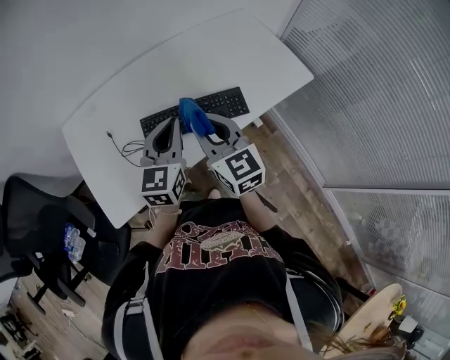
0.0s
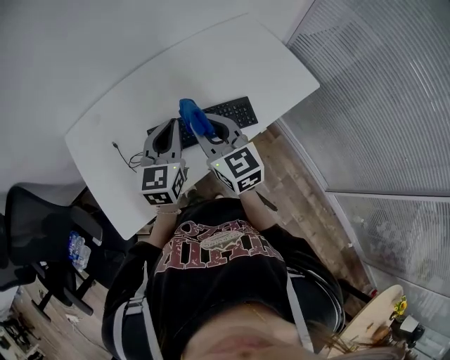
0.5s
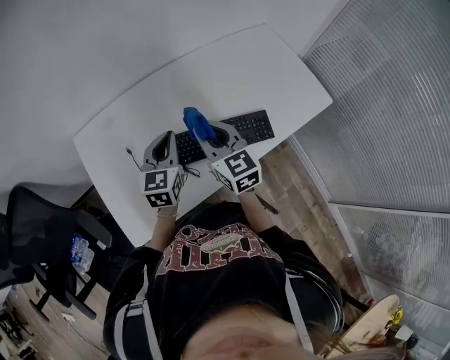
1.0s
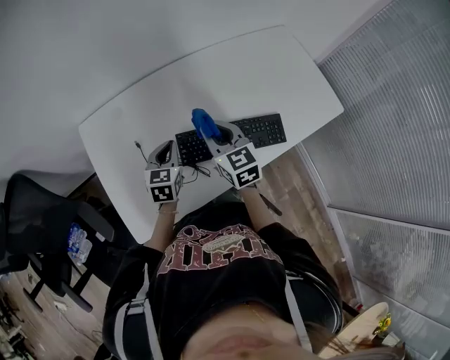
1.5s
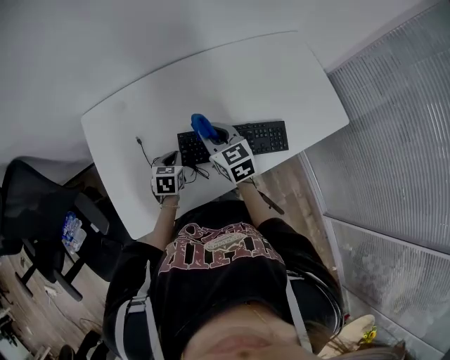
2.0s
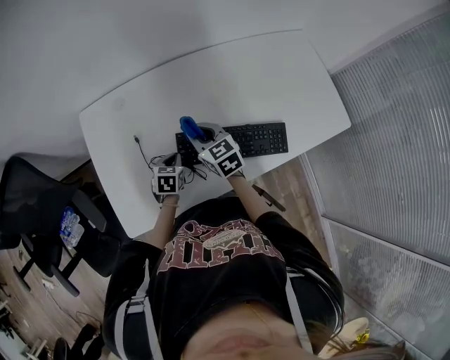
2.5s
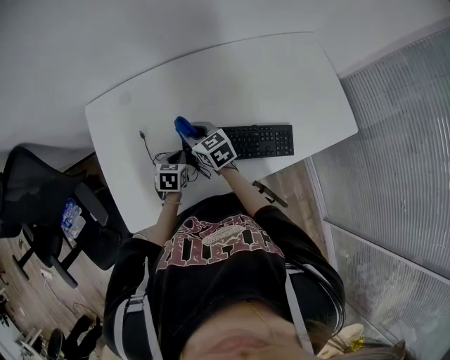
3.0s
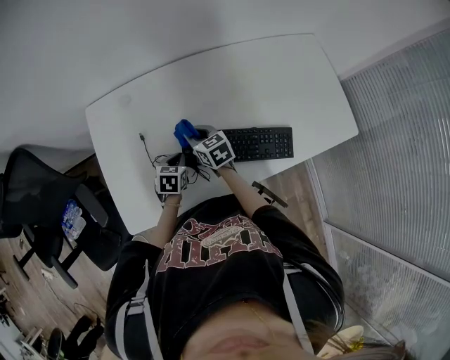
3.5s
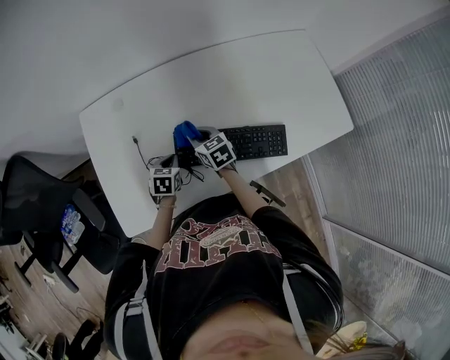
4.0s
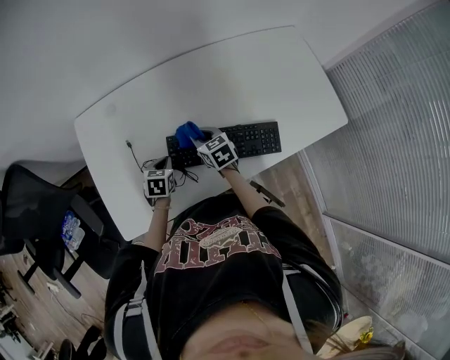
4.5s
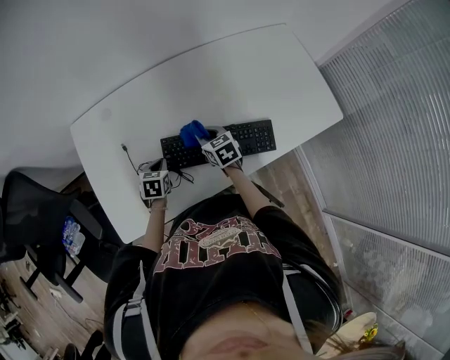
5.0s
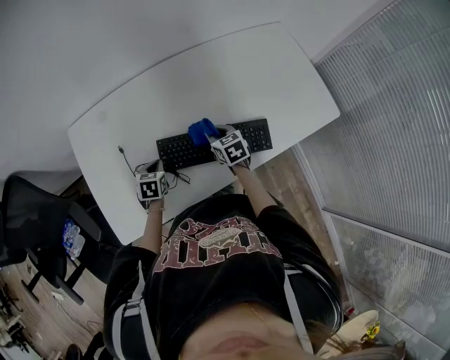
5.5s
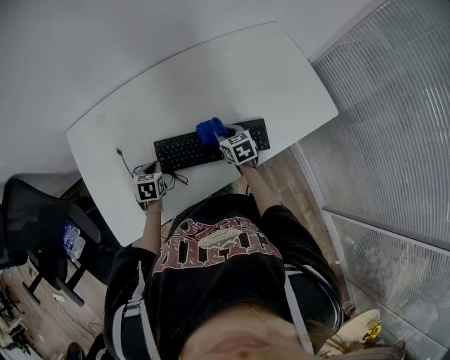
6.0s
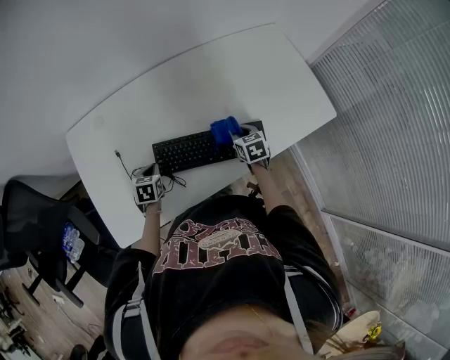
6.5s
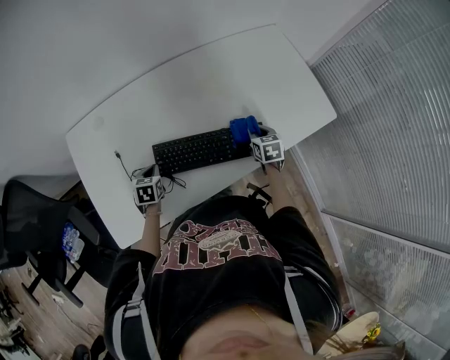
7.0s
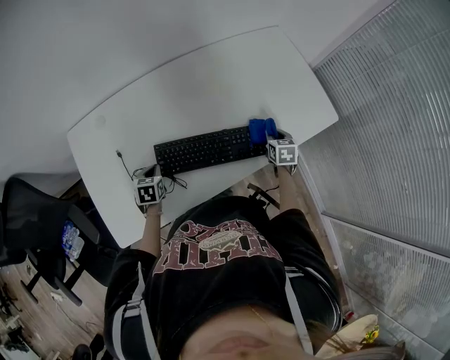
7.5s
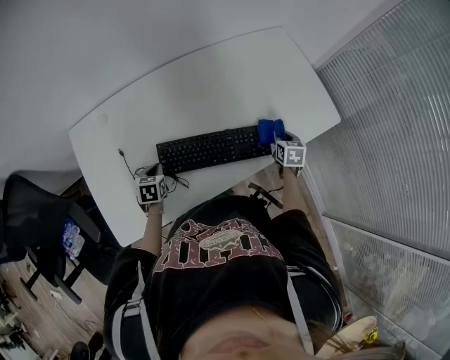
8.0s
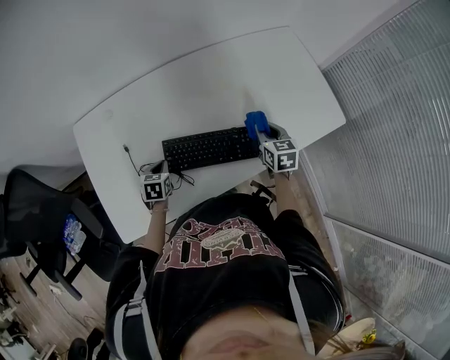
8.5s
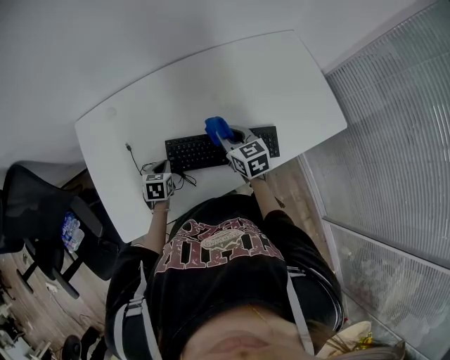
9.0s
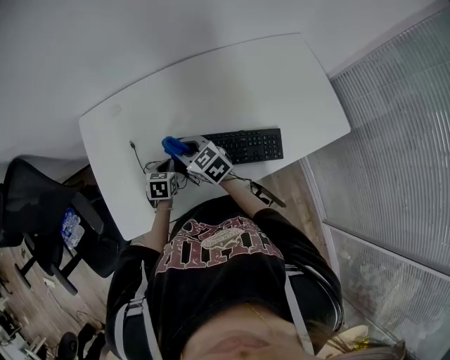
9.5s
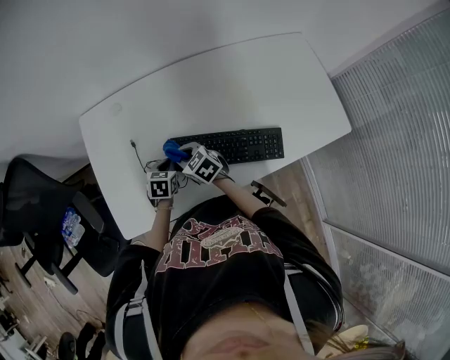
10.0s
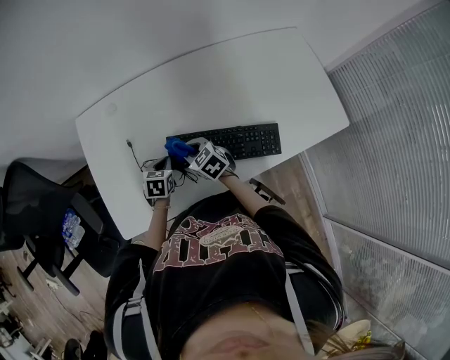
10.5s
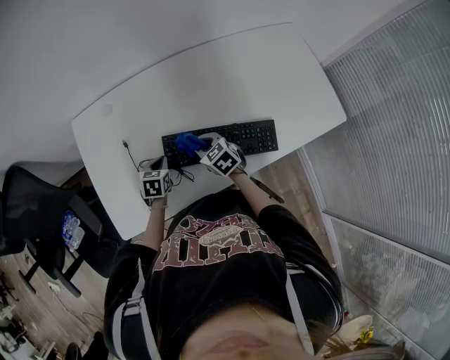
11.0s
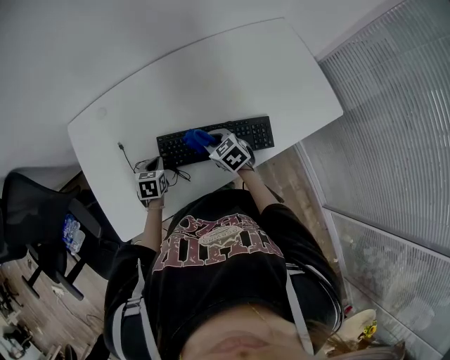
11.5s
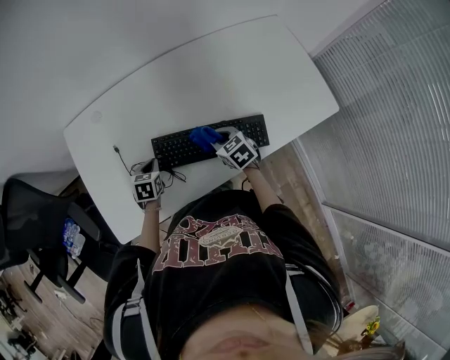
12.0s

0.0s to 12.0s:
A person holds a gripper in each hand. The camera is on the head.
0.0s to 2.0s: The left gripper goes about 30 cm downward and to the left, and angles its fingers downward, by some 40 degrees, while the right gripper is displaced forward, downward and to the left by approximately 25 cm, and turns by roughly 20 degrees.
2.0s to 4.0s: The right gripper heads downward, covering roughly 10 cm.
4.0s to 6.0s: The right gripper travels to the right by roughly 20 cm.
6.0s to 8.0s: The right gripper goes some 20 cm to the right, and swivels some 30 degrees.
8.0s to 10.0s: The right gripper moves about 10 cm upward and comes back, and changes its angle by roughly 60 degrees.
10.0s to 12.0s: The right gripper heads to the right, covering about 20 cm.

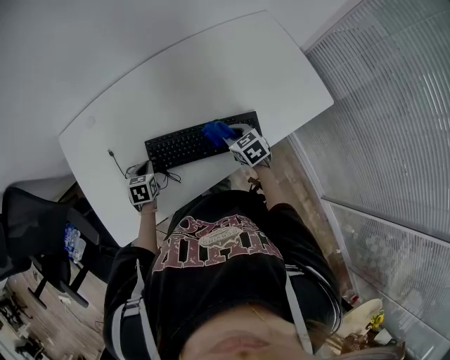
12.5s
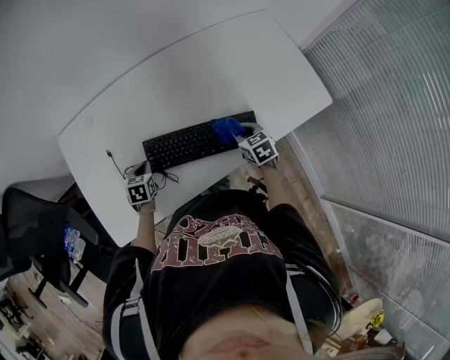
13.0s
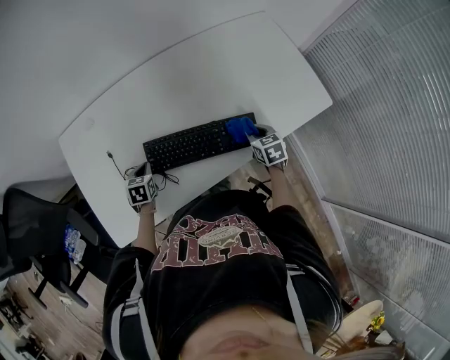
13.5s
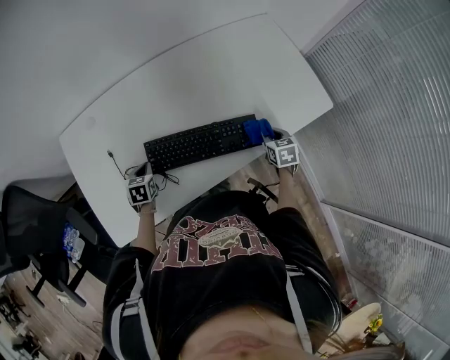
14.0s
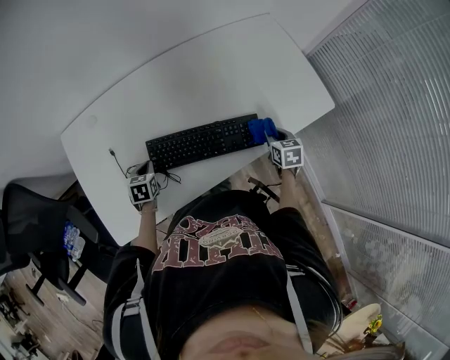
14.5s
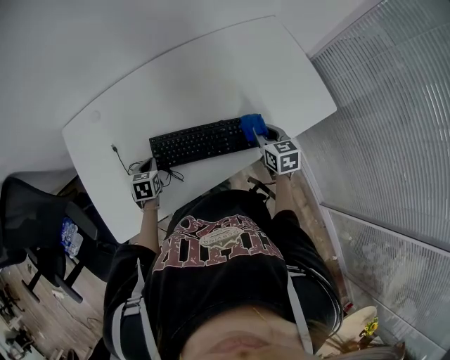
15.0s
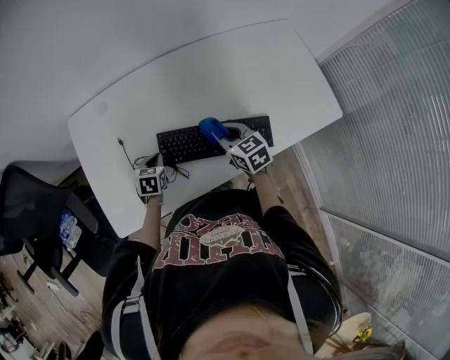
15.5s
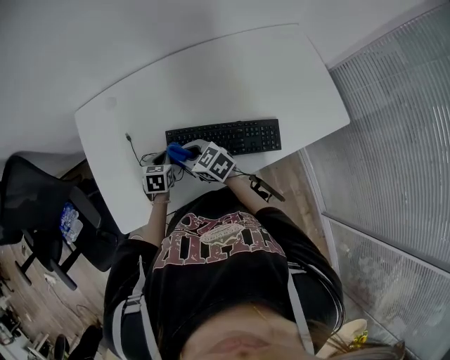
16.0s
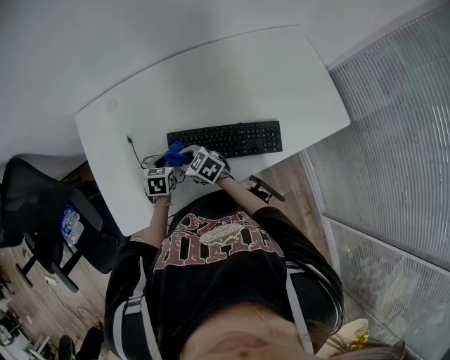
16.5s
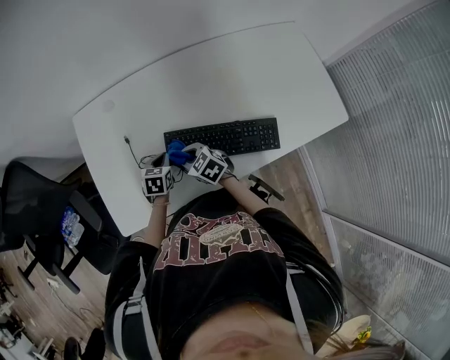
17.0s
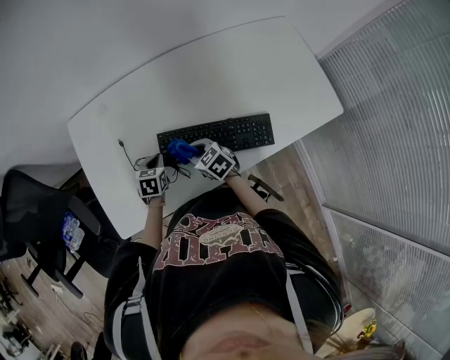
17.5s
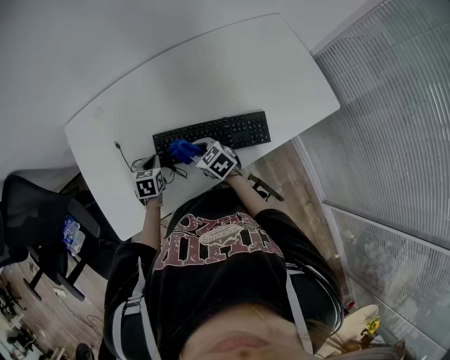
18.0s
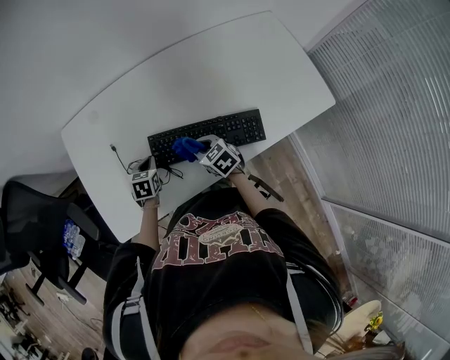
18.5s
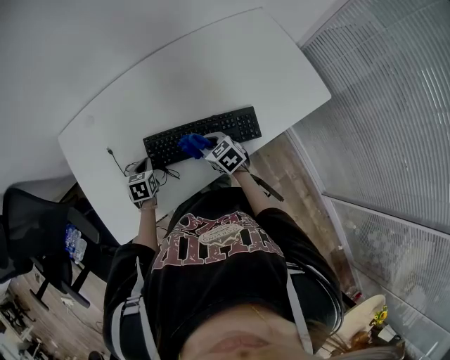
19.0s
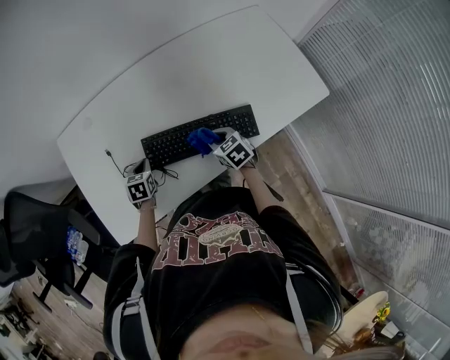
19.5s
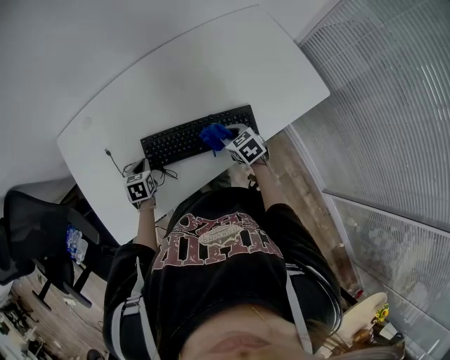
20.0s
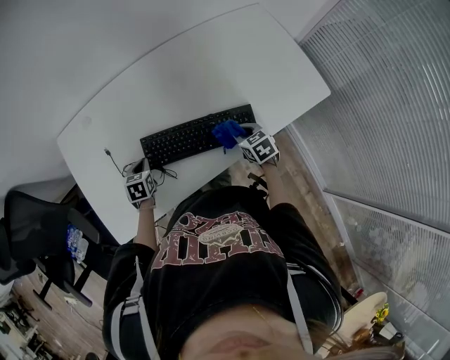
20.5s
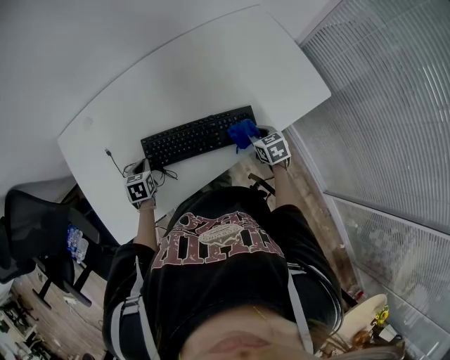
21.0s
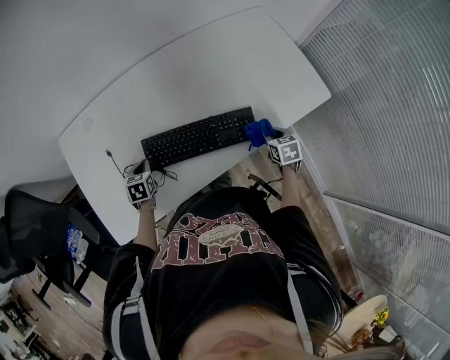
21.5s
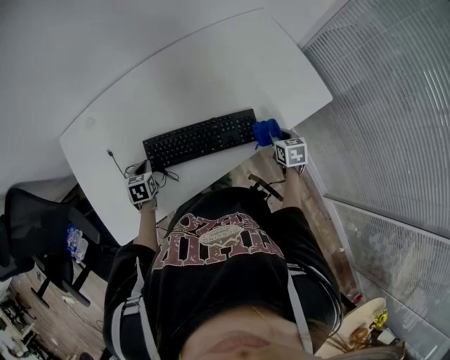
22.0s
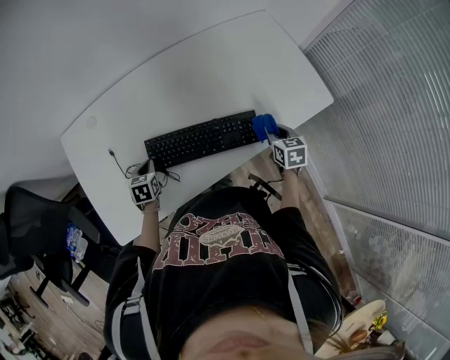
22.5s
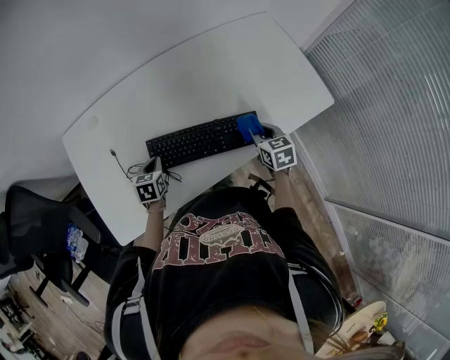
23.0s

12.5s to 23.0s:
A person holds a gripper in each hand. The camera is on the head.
12.5s to 14.5s: The right gripper shifts approximately 15 cm to the right, and rotates roughly 30 degrees.
14.5s to 16.5s: The right gripper moves some 40 cm, and rotates about 60 degrees.
16.5s to 19.0s: The right gripper moves to the right, roughly 20 cm, and changes its angle by about 20 degrees.
19.0s to 21.0s: The right gripper goes roughly 20 cm to the right, and swivels some 20 degrees.
21.0s to 23.0s: The right gripper shifts approximately 5 cm upward, and goes to the right and returns, about 10 cm each way.

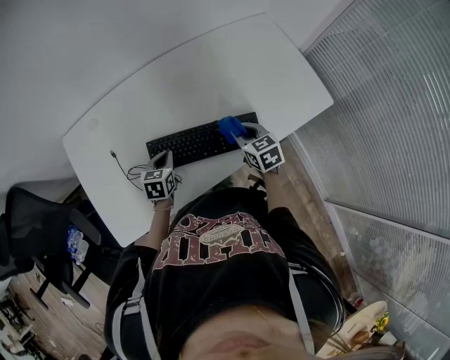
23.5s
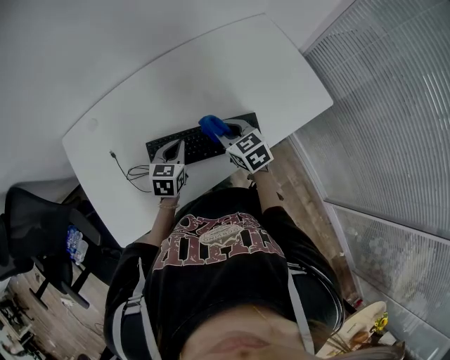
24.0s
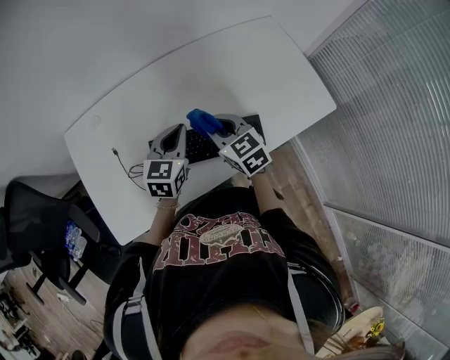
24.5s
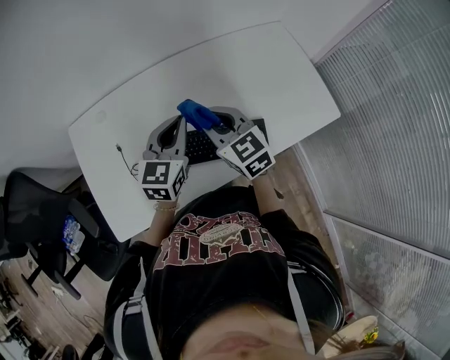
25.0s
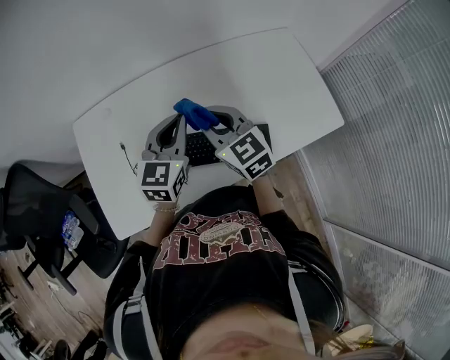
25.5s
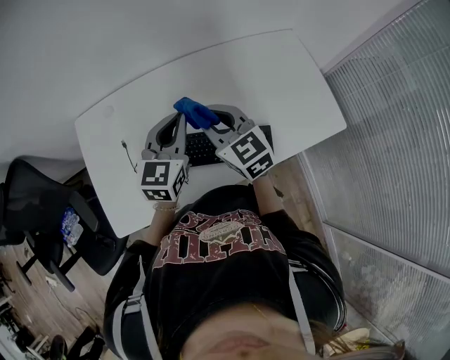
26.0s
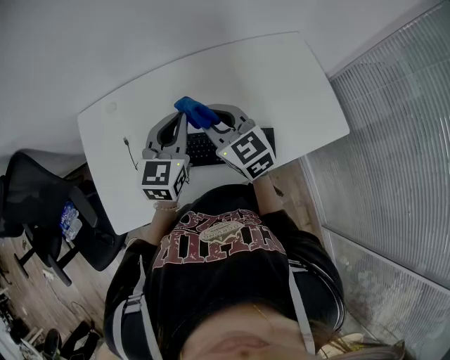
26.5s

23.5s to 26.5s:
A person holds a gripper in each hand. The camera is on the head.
23.5s to 25.0s: The right gripper shifts some 20 cm upward and to the left, and rotates approximately 30 degrees. The left gripper heads upward, covering roughly 20 cm, and rotates about 30 degrees.
25.0s to 26.5s: The grippers stay close to where they were, moving slightly.

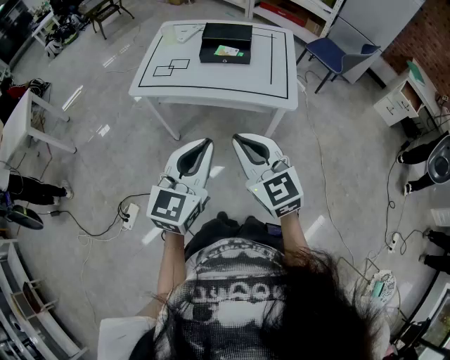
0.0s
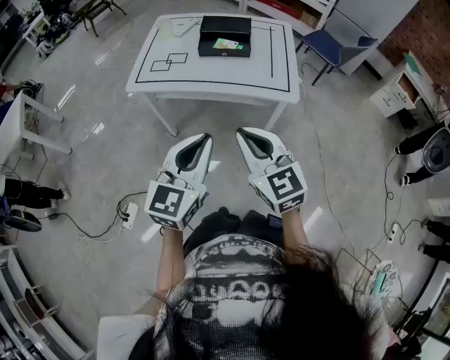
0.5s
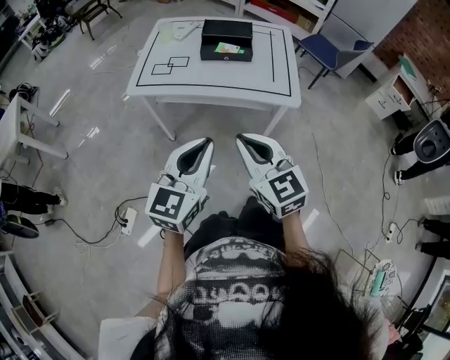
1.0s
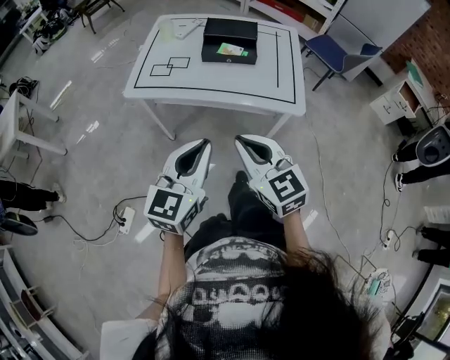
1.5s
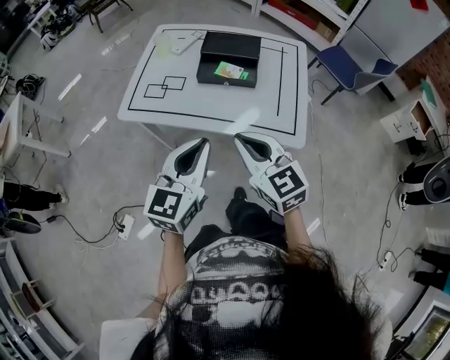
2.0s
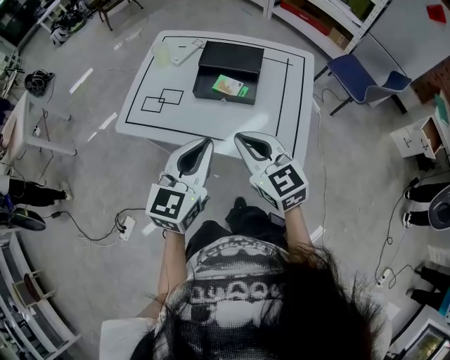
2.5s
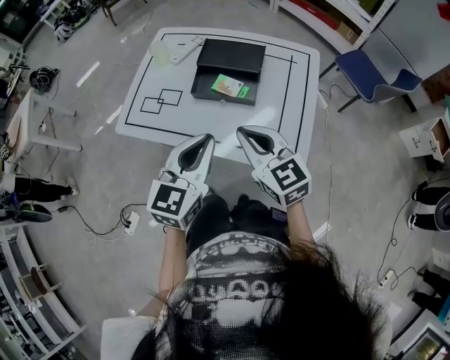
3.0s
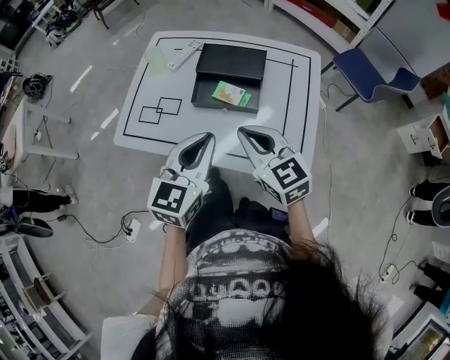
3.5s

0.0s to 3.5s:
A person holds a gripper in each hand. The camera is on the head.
0.0s to 2.0s: The grippers both shift forward by roughly 25 cm.
2.0s to 3.5s: The right gripper shifts approximately 20 cm forward. Meanwhile the left gripper heads forward and to the right, covering approximately 20 cm.
